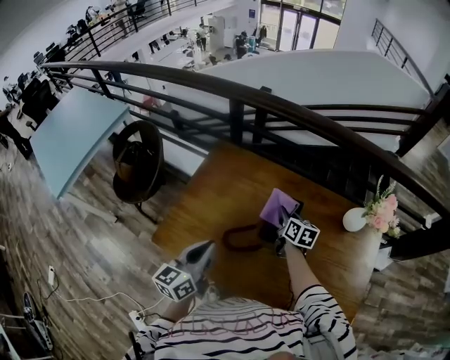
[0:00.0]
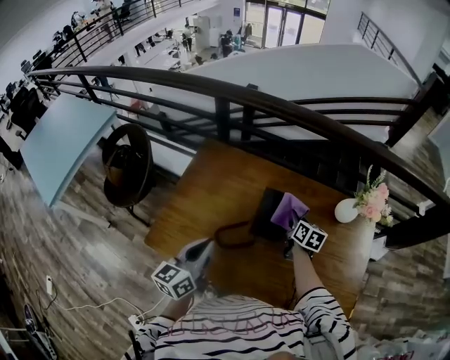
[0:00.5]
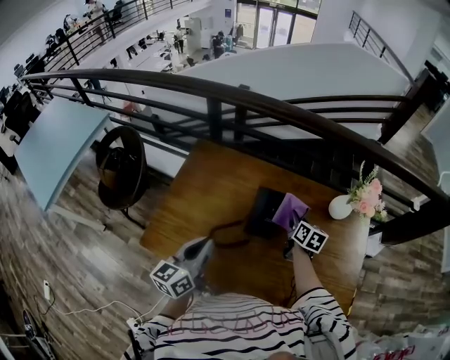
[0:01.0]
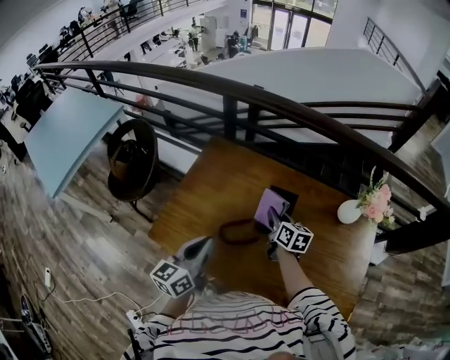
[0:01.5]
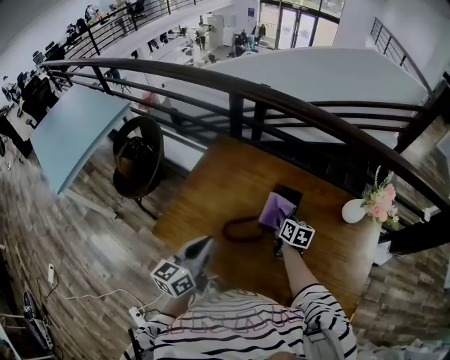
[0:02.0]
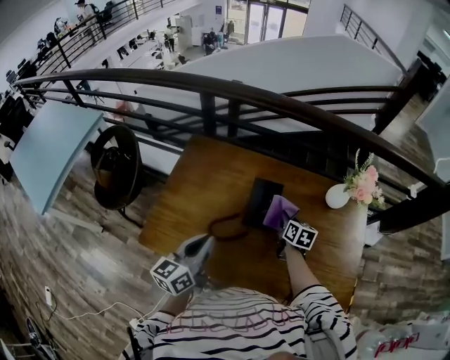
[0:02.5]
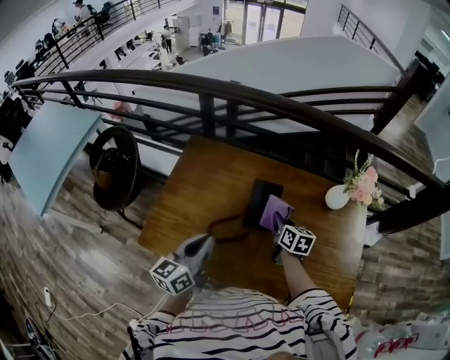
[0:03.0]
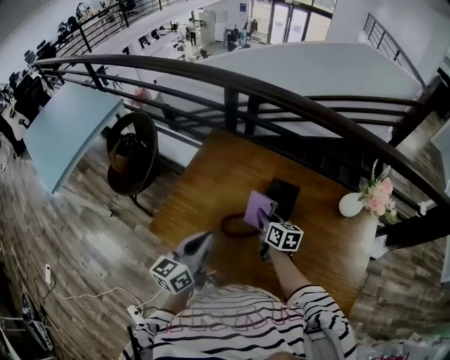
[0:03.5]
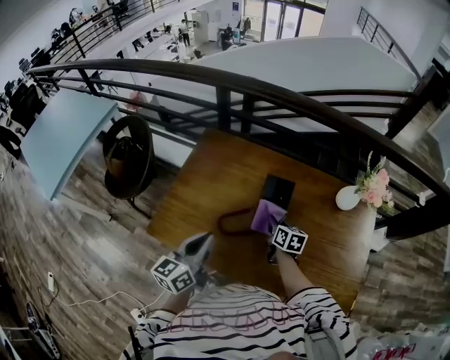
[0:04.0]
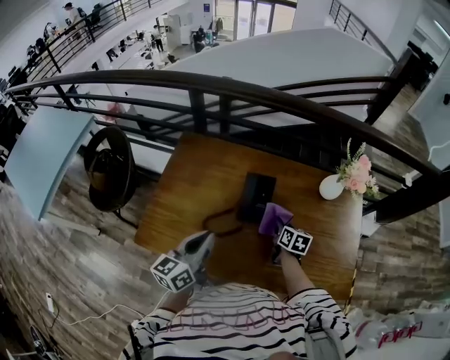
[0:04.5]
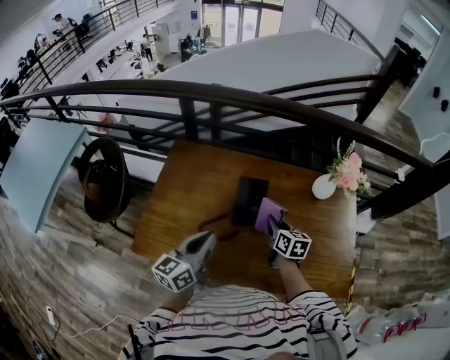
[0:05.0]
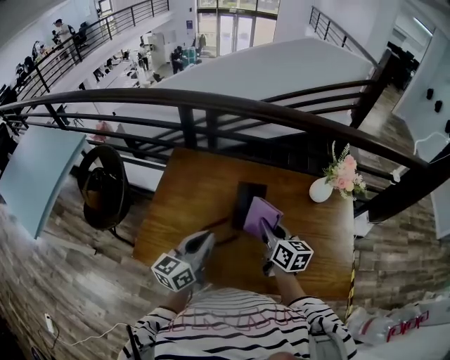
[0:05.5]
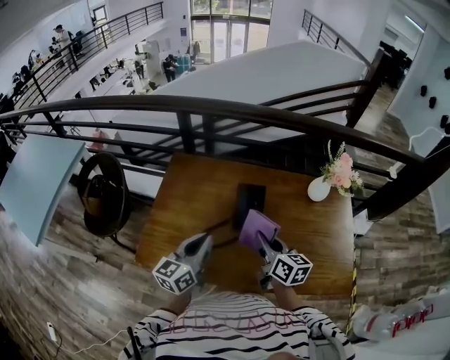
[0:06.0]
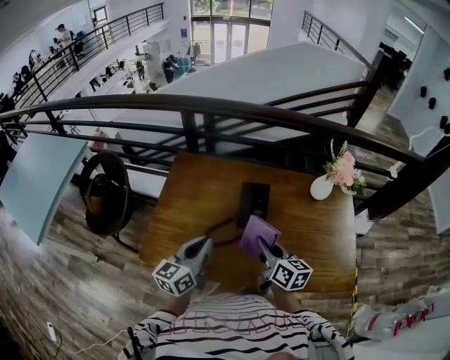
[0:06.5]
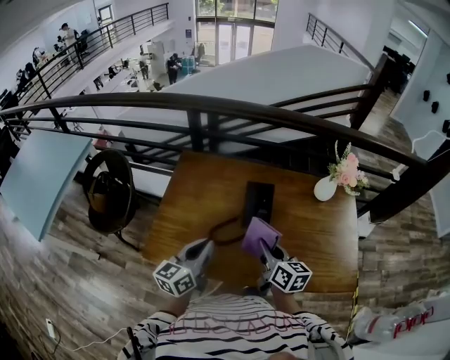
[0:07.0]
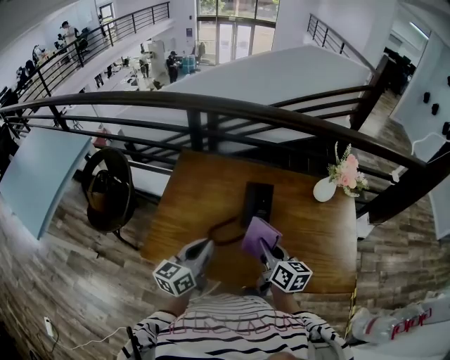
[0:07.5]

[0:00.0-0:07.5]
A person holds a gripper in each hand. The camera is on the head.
0:00.0 to 0:02.0: The right gripper travels to the right and back again, about 10 cm each way.
0:02.0 to 0:04.0: The right gripper goes left and right, roughly 15 cm each way, reversing 2 times.
0:04.0 to 0:05.5: The left gripper moves to the right, about 5 cm, while the right gripper travels upward by about 15 cm.
0:05.5 to 0:07.5: The right gripper travels backward by approximately 10 cm, while the left gripper travels backward by approximately 5 cm.

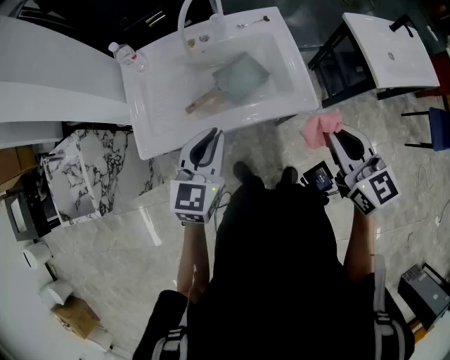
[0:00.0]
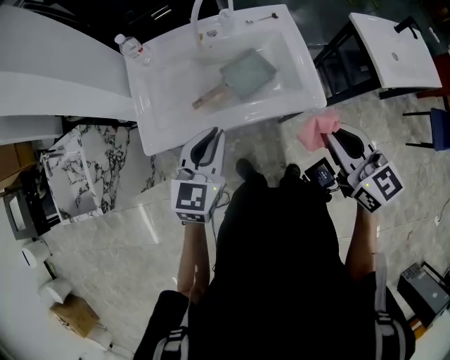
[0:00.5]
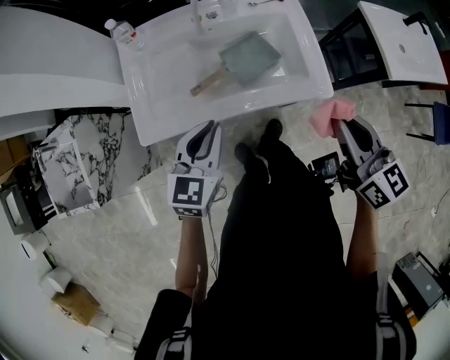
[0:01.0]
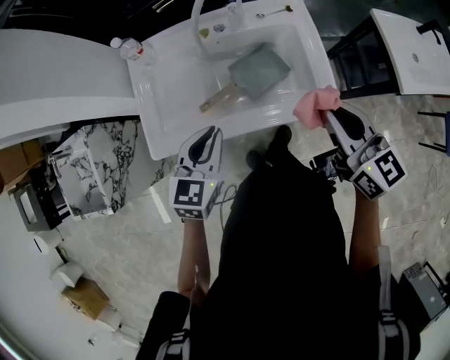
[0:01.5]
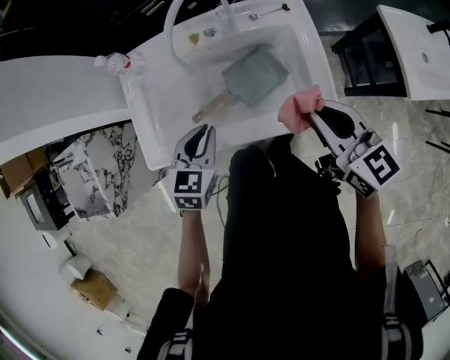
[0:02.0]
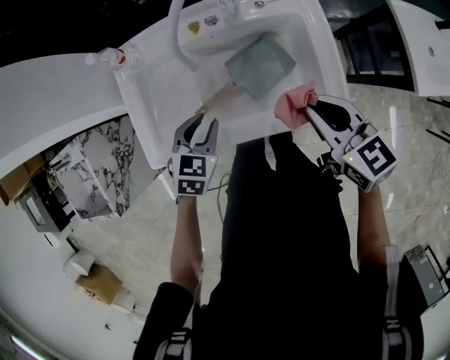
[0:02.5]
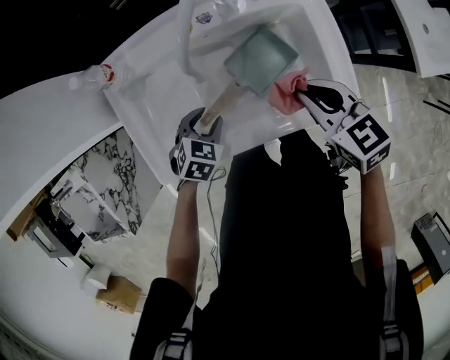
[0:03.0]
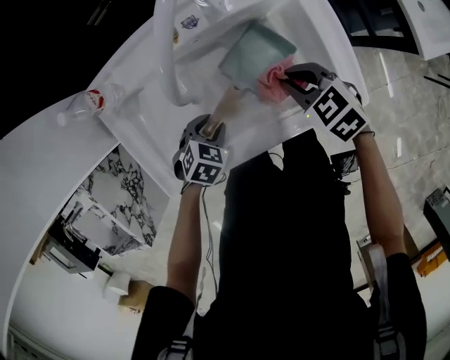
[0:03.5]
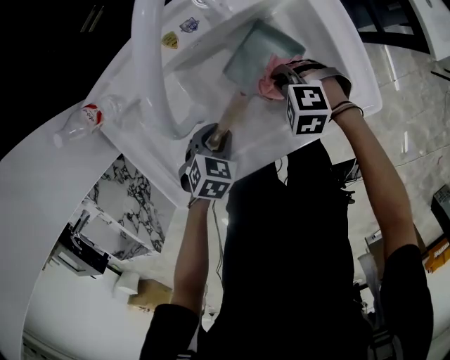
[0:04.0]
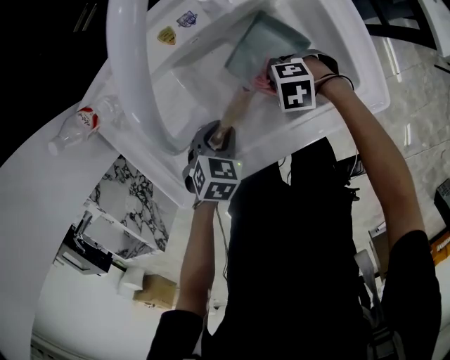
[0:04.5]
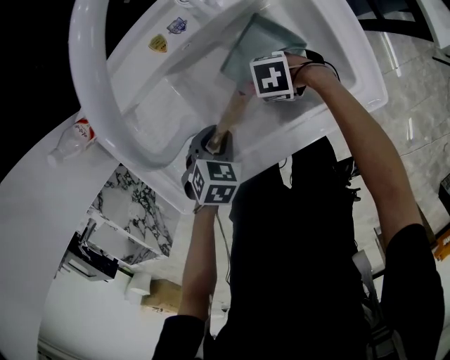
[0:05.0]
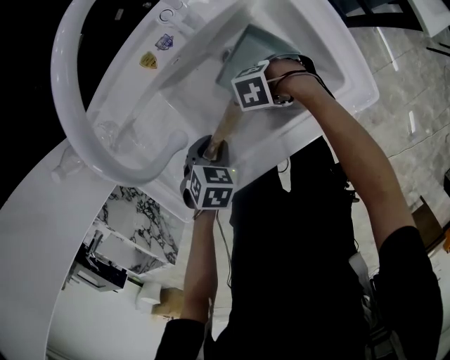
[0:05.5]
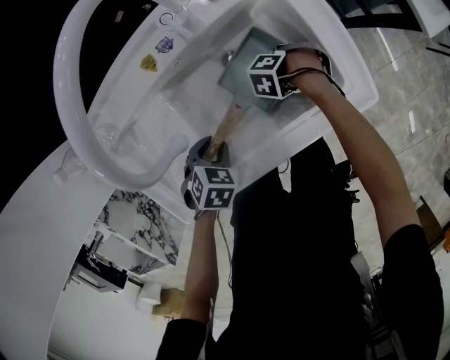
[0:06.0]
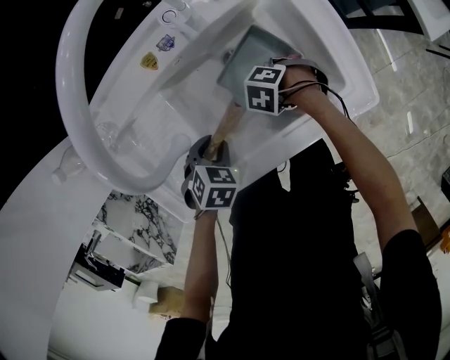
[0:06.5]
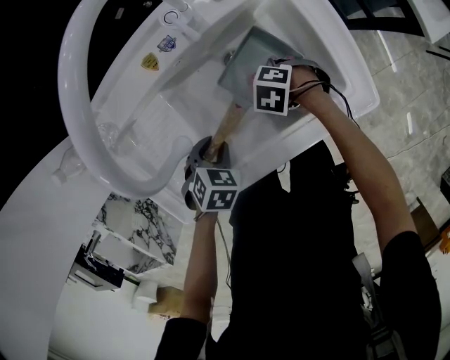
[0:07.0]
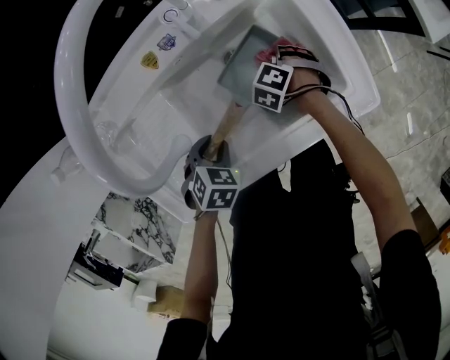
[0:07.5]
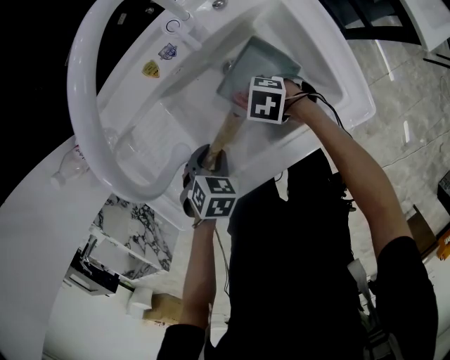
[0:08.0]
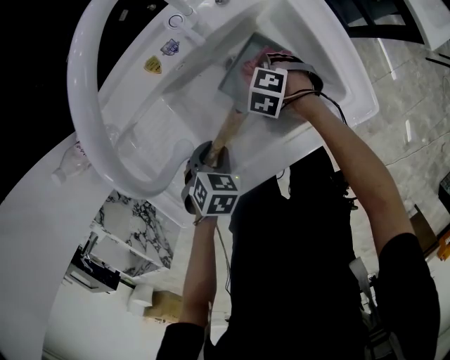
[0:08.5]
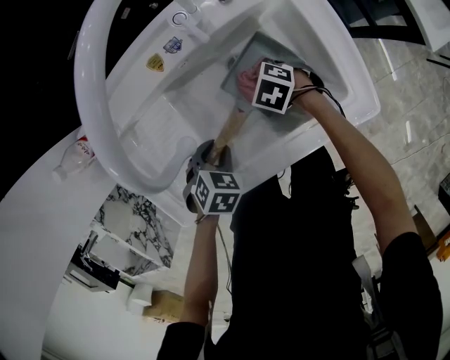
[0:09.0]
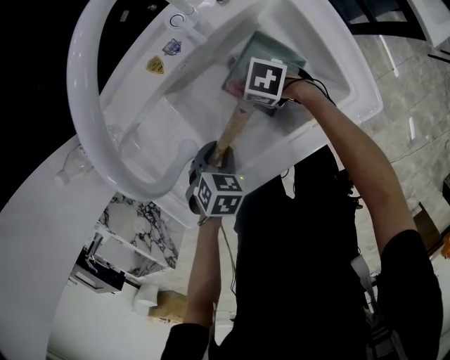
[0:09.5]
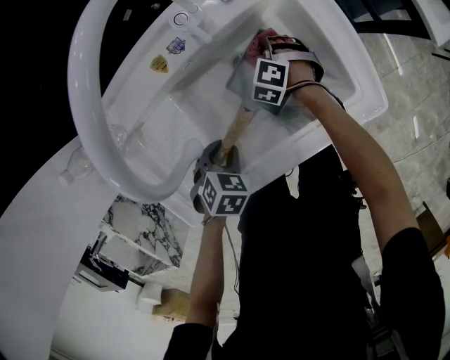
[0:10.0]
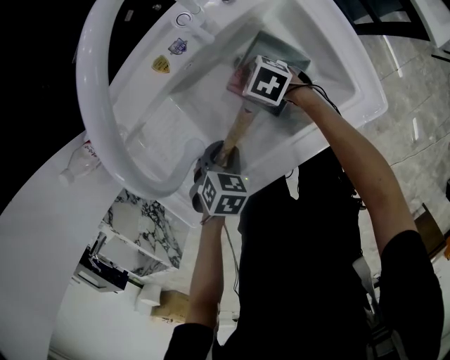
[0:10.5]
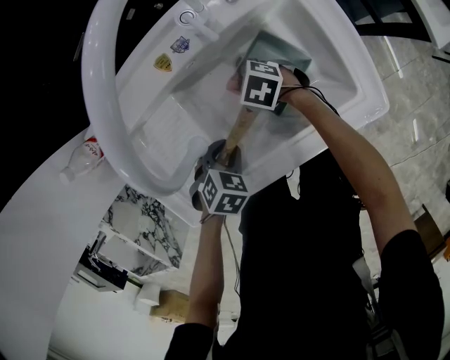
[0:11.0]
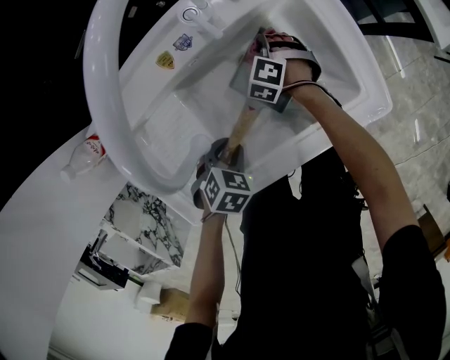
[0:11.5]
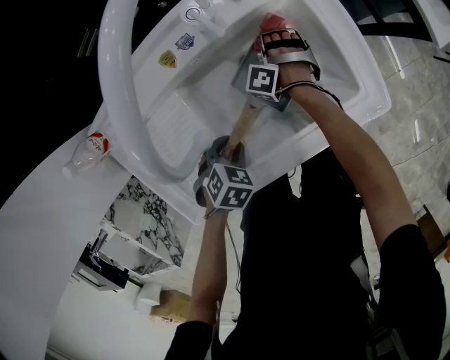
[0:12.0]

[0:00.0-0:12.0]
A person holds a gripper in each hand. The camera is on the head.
0:00.0 to 0:02.0: The right gripper is displaced forward by about 15 cm. The left gripper is displaced downward and forward by some 15 cm, and swivels about 20 degrees.
0:02.0 to 0:04.0: The left gripper is displaced downward by approximately 20 cm, and changes its angle by roughly 40 degrees. The right gripper moves downward, approximately 30 cm, and tips its fingers downward by approximately 60 degrees.
0:04.0 to 0:06.0: The right gripper goes roughly 10 cm downward, and swivels about 40 degrees.
0:06.0 to 0:08.0: The right gripper ends up about 15 cm from where it was, and turns by roughly 40 degrees.
0:08.0 to 0:10.0: The right gripper changes place by some 15 cm, and swivels about 50 degrees.
0:10.0 to 0:12.0: The right gripper swivels roughly 30 degrees.

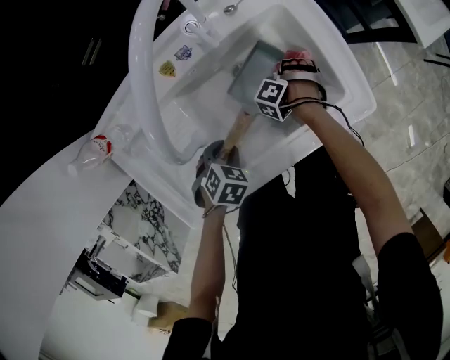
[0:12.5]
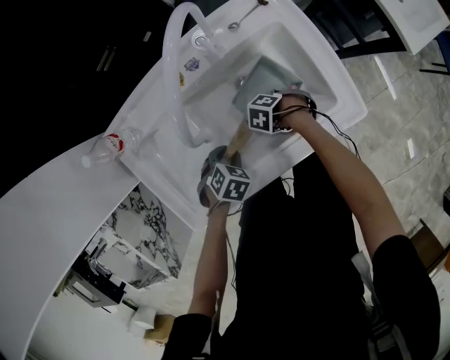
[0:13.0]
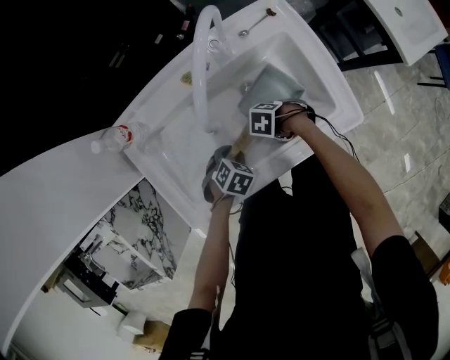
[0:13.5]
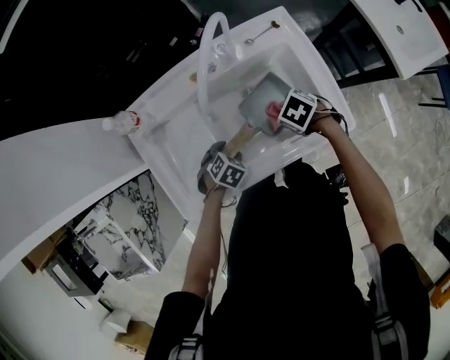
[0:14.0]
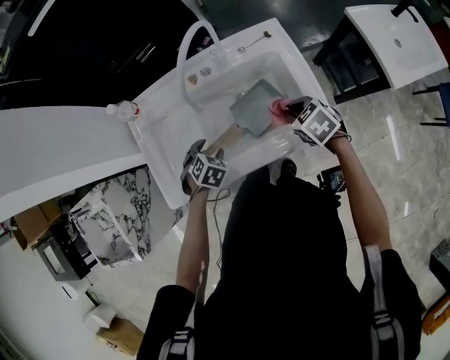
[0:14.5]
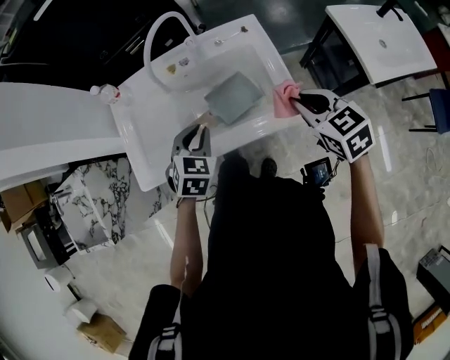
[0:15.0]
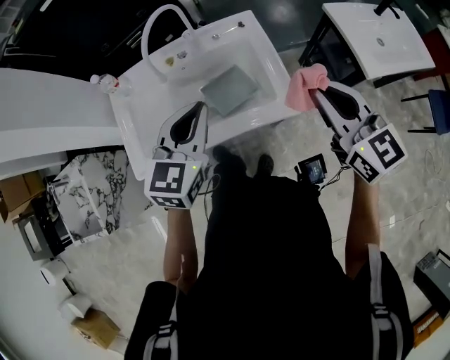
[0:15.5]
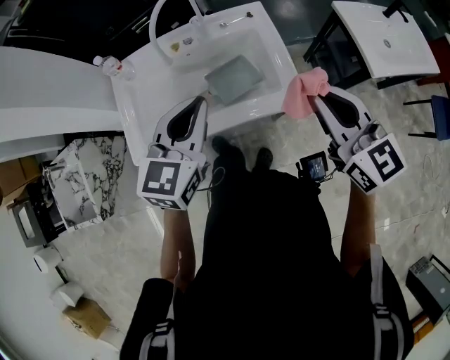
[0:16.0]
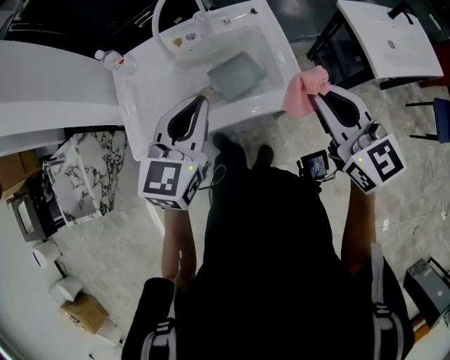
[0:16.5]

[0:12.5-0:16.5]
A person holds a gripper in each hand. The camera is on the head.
0:12.5 to 0:14.5: The right gripper moves upward, roughly 25 cm, and changes its angle by approximately 60 degrees. Meanwhile the left gripper goes about 5 cm upward, and opens.
0:14.5 to 0:16.5: The left gripper shifts roughly 35 cm upward and to the right, points its fingers roughly 50 degrees further upward, and closes up, while the right gripper shifts some 30 cm upward and backward, and points its fingers some 50 degrees further upward.

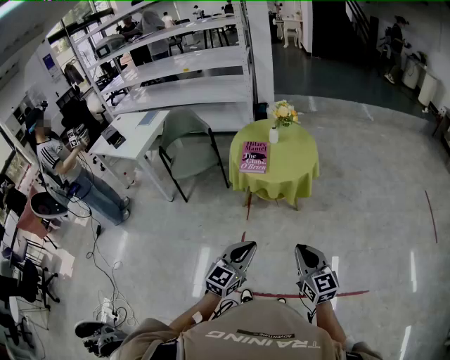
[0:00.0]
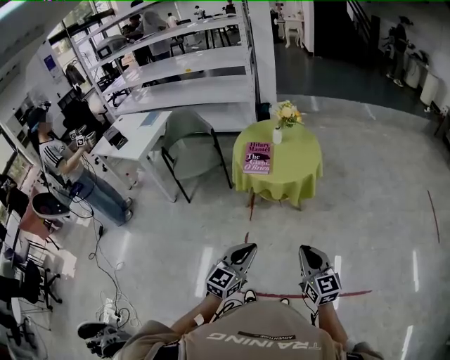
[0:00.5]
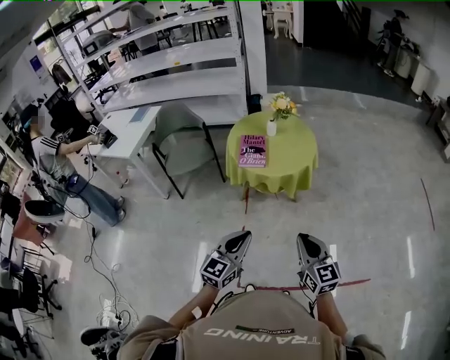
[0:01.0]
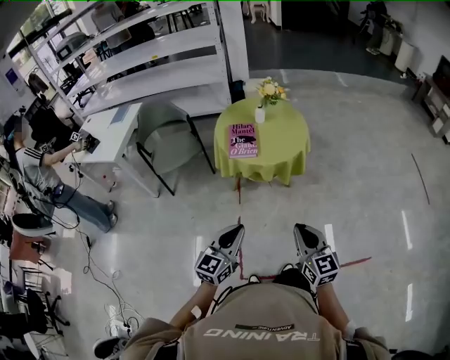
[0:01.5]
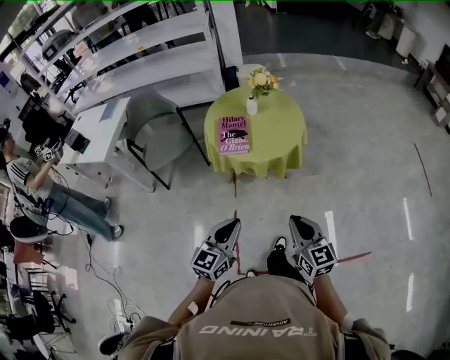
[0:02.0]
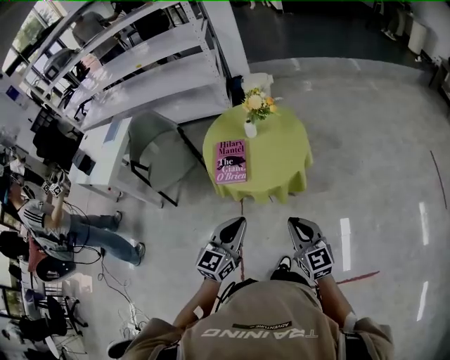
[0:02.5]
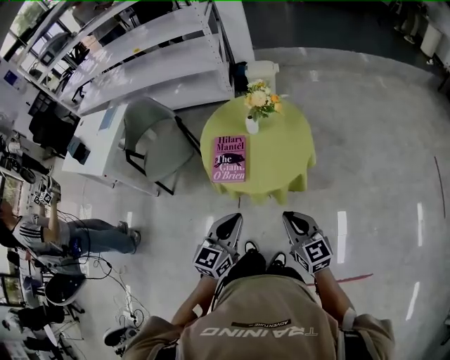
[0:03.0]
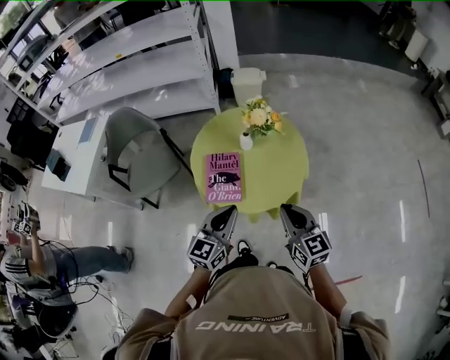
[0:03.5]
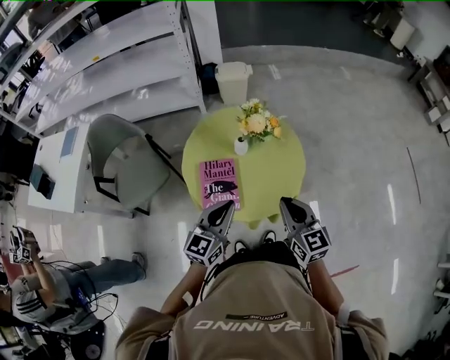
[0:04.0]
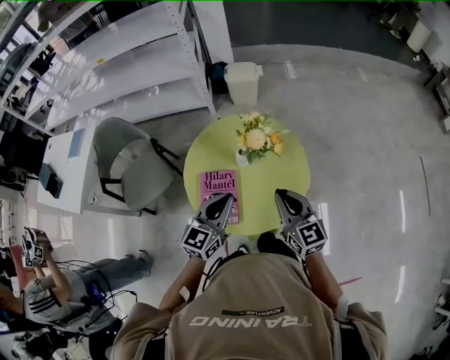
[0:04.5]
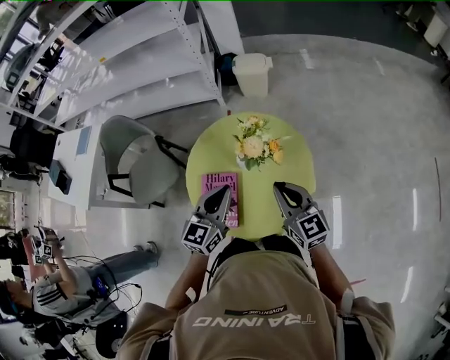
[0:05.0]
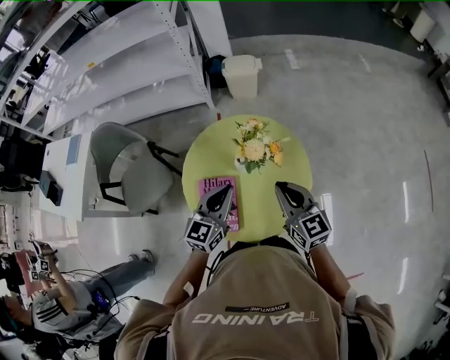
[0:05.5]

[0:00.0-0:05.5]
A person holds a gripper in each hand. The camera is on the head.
0:00.0 to 0:02.0: The left gripper is displaced forward and to the left by approximately 15 cm. Meanwhile the right gripper goes some 15 cm forward.
0:02.0 to 0:03.5: The two grippers go about 35 cm forward.
0:03.5 to 0:05.5: The two grippers go roughly 25 cm forward.
